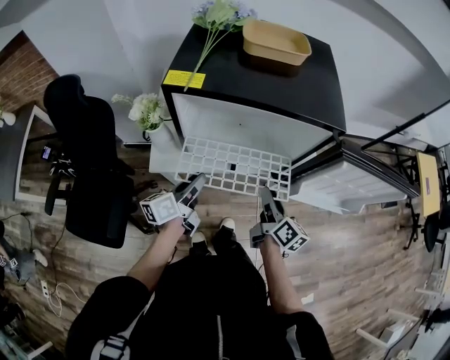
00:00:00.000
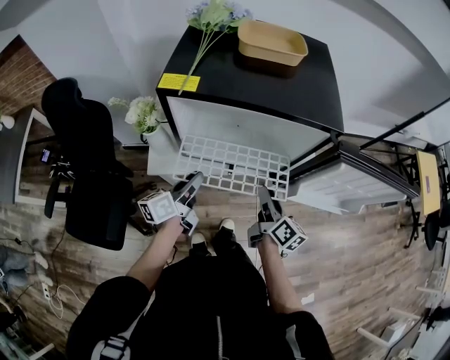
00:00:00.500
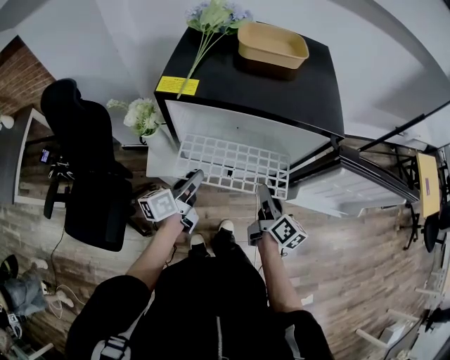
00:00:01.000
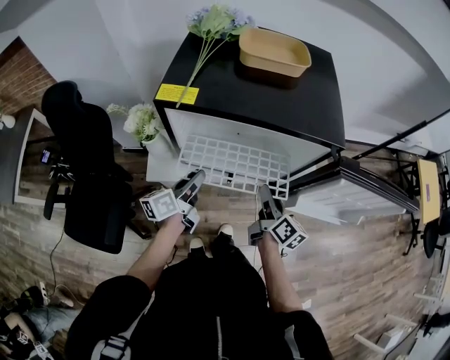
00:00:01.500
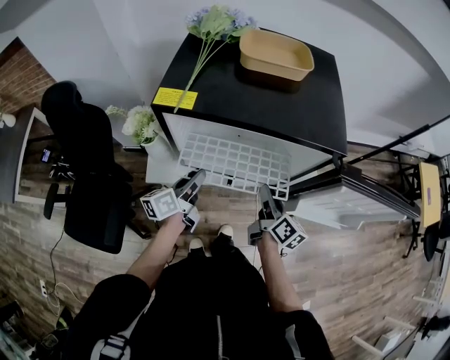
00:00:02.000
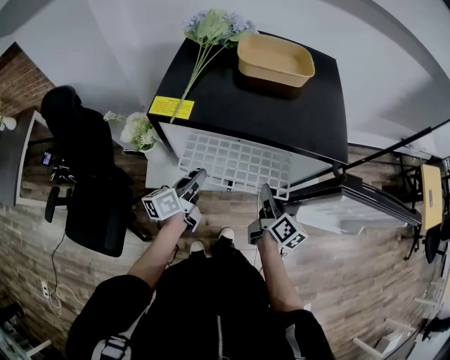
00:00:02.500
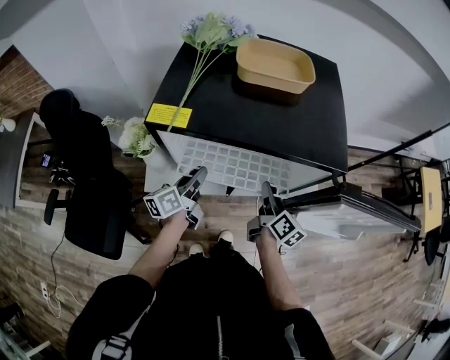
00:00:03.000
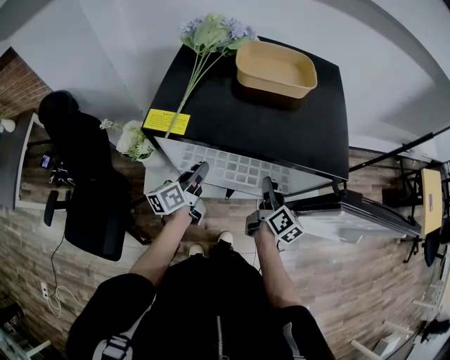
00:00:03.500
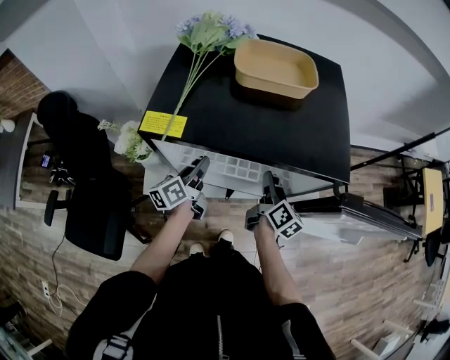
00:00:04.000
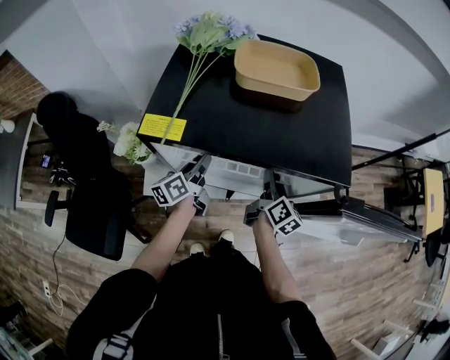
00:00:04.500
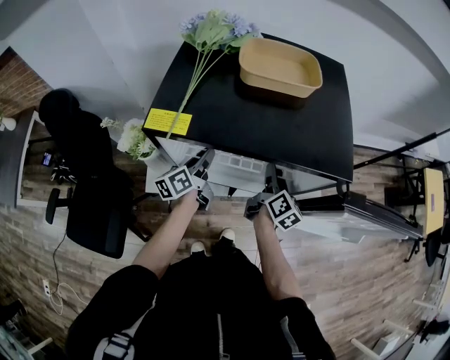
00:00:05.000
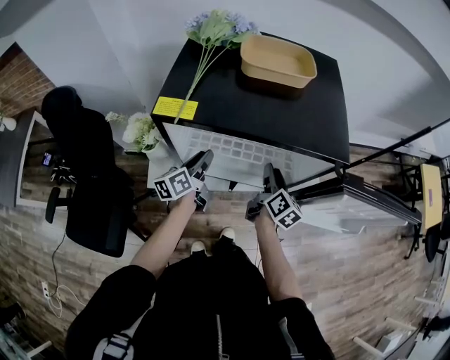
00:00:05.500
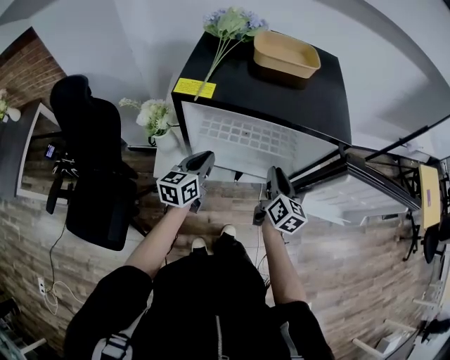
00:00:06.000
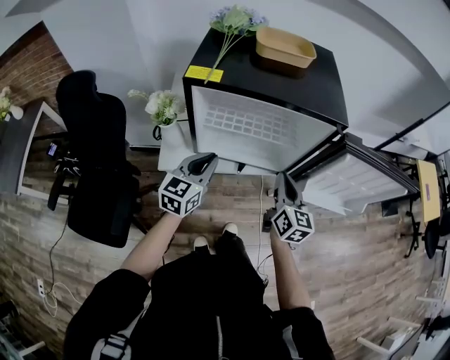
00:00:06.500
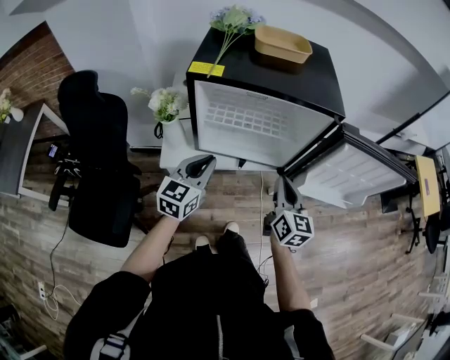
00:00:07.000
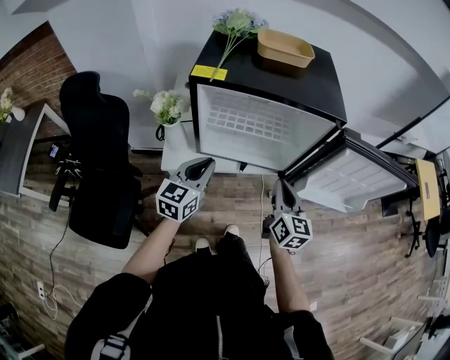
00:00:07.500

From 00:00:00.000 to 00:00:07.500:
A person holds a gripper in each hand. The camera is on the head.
From 00:00:00.000 to 00:00:02.000: Both grippers travel together forward, approximately 5 cm.
From 00:00:02.000 to 00:00:04.000: The two grippers go roughly 10 cm forward.
From 00:00:04.000 to 00:00:05.500: The grippers move only a little.
From 00:00:05.500 to 00:00:07.500: The right gripper shifts approximately 15 cm backward, turns by some 30 degrees, and closes its fingers. The left gripper moves backward and upward, roughly 20 cm, rotates around the line of its fingers by about 40 degrees, clockwise from behind, and closes up.

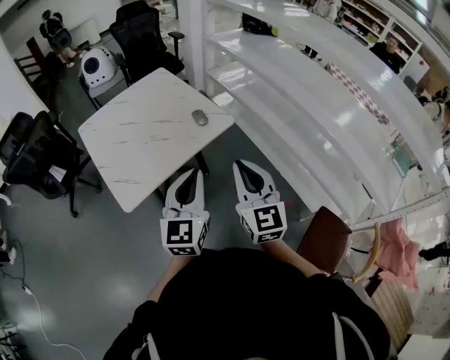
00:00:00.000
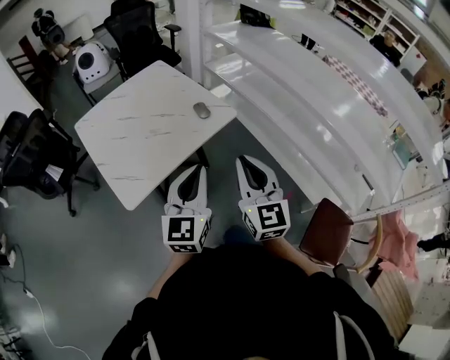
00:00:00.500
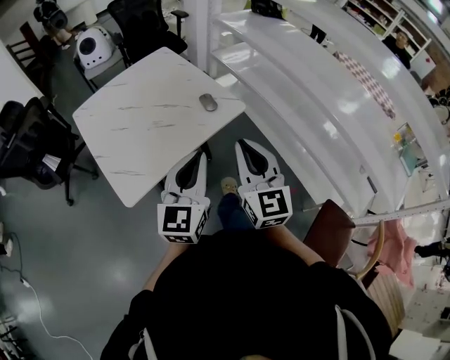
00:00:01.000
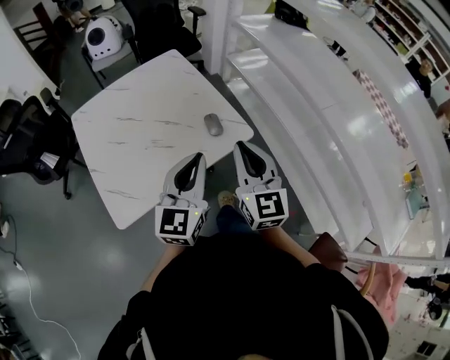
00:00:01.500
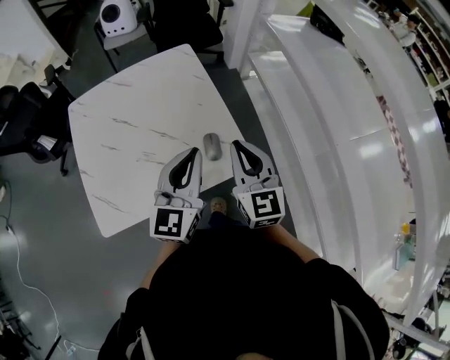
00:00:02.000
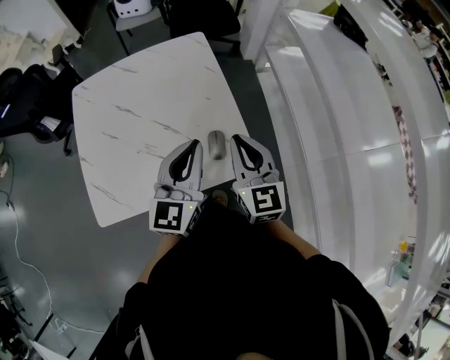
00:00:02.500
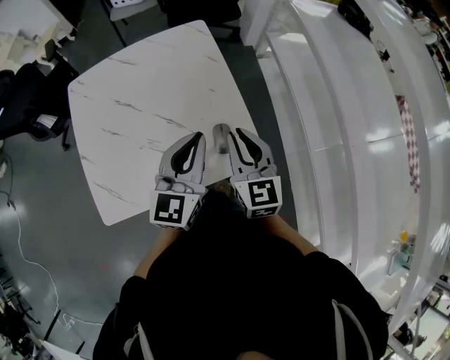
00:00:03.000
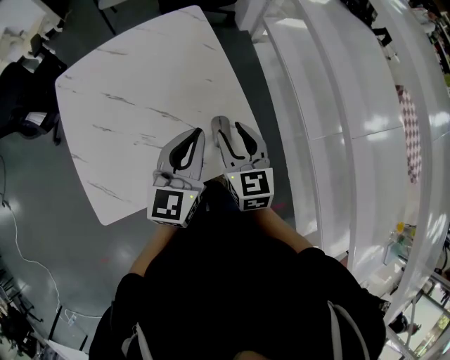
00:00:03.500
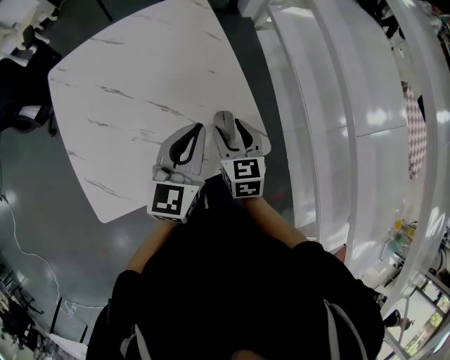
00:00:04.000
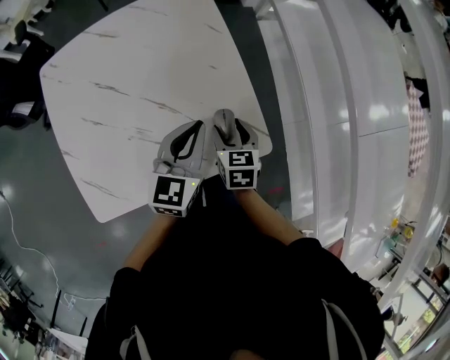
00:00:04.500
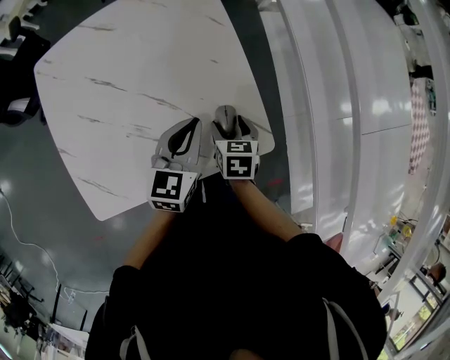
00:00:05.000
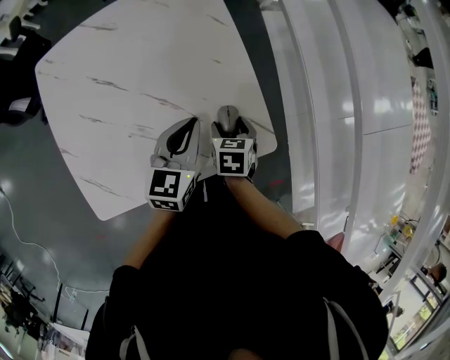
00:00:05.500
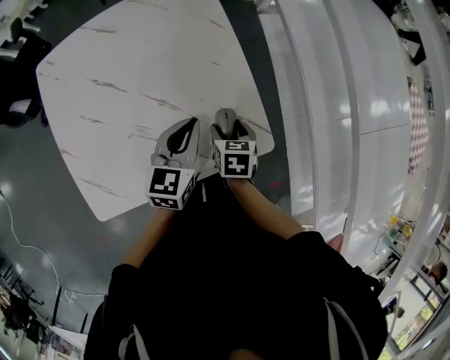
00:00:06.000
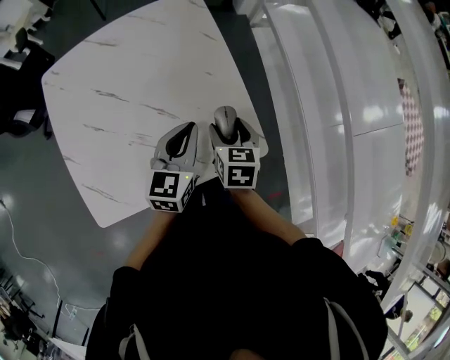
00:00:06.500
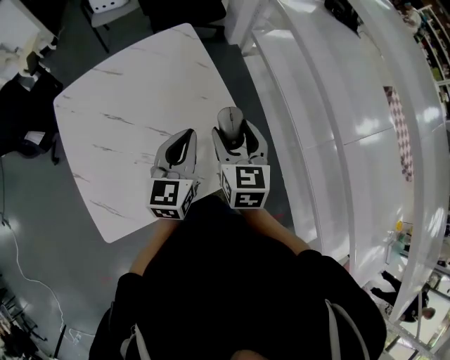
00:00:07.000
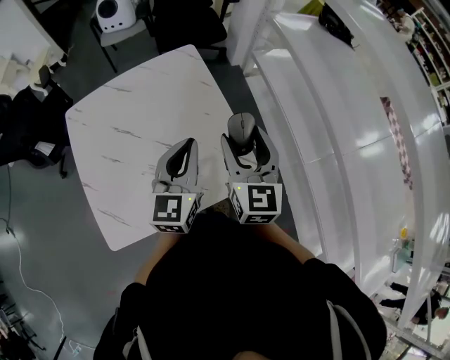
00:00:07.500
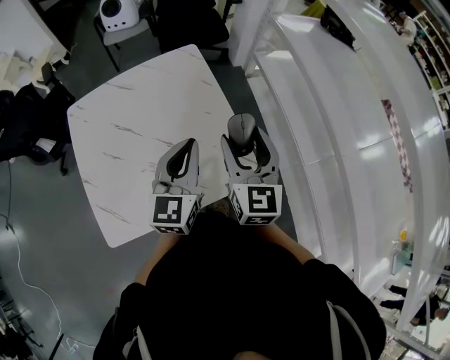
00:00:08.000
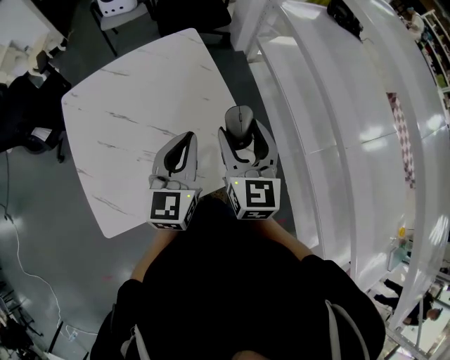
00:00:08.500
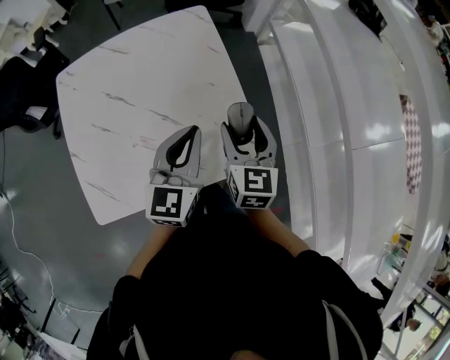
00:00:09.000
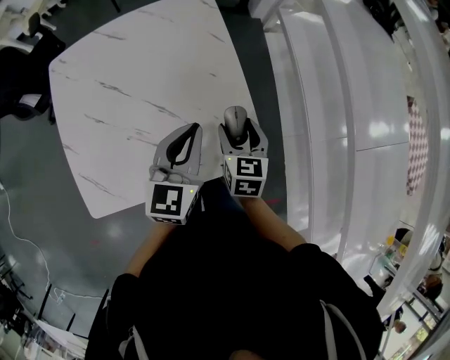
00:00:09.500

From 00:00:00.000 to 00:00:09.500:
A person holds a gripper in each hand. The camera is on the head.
From 00:00:00.000 to 00:00:02.000: The two grippers go some 35 cm forward.
From 00:00:02.000 to 00:00:04.000: The two grippers go roughly 15 cm downward and forward. The right gripper swivels approximately 30 degrees, and opens.
From 00:00:04.000 to 00:00:05.500: Both grippers move downward, approximately 10 cm. The right gripper changes its angle by approximately 30 degrees.
From 00:00:05.500 to 00:00:07.500: The right gripper goes roughly 30 cm upward, and tilts its fingers roughly 50 degrees upward, while the left gripper shifts some 15 cm upward, and turns by some 20 degrees.
From 00:00:07.500 to 00:00:09.500: The right gripper goes roughly 20 cm downward, and rotates about 30 degrees. Meanwhile the left gripper heads downward, covering some 10 cm.

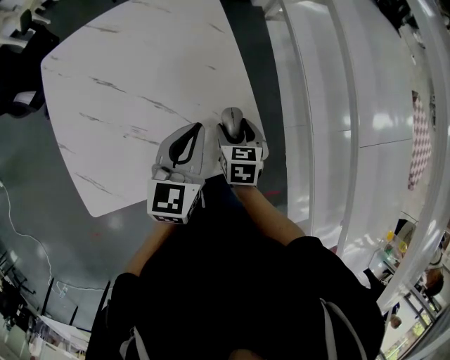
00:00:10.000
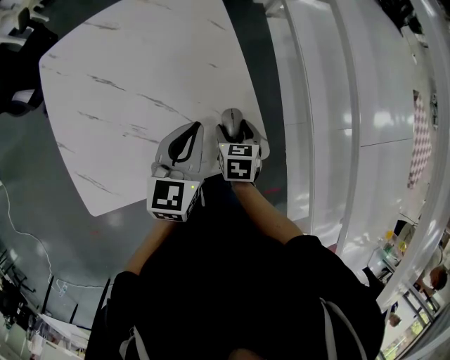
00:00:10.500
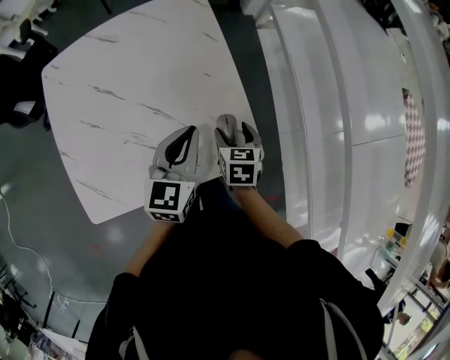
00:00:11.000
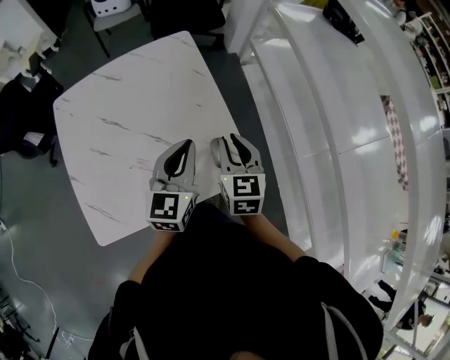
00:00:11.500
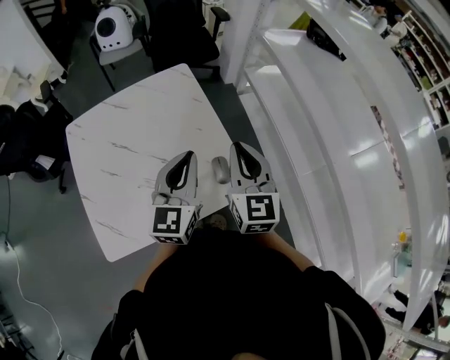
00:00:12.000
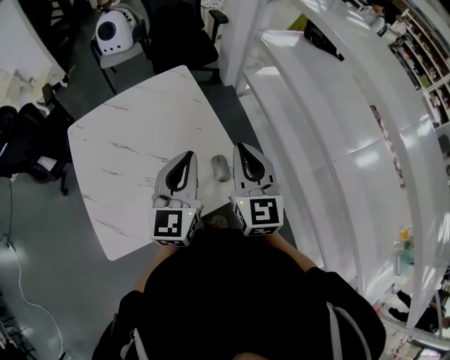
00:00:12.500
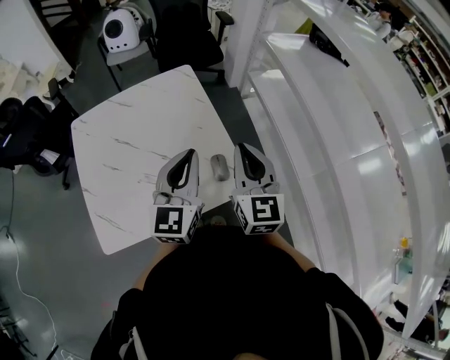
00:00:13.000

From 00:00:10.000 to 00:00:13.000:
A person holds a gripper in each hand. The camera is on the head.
From 00:00:10.000 to 00:00:11.500: The left gripper travels upward by roughly 5 cm. Meanwhile the right gripper travels upward by roughly 20 cm, changes its angle by some 30 degrees, and closes.
From 00:00:11.500 to 00:00:13.000: The two grippers go about 10 cm upward. The right gripper rotates some 20 degrees.

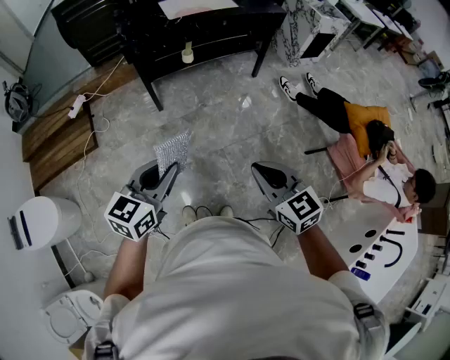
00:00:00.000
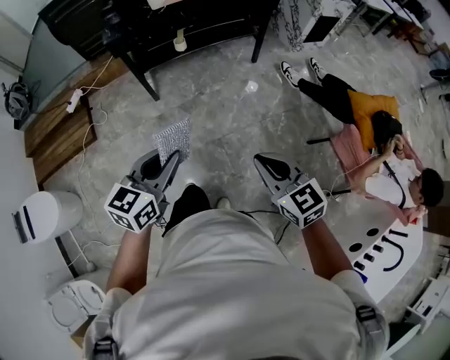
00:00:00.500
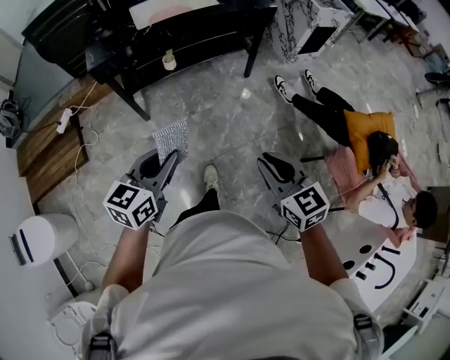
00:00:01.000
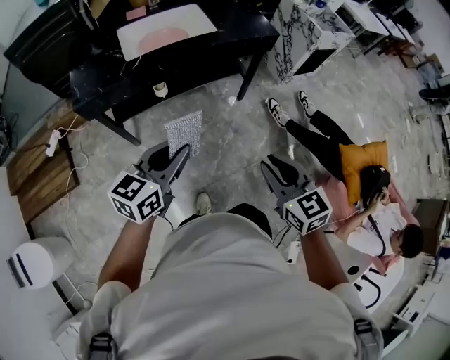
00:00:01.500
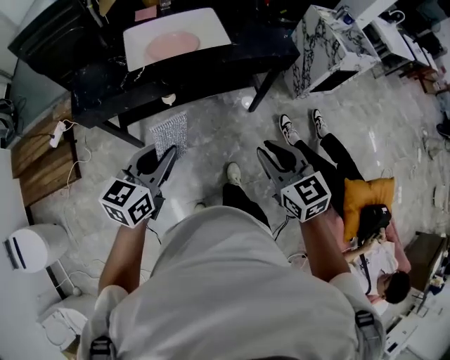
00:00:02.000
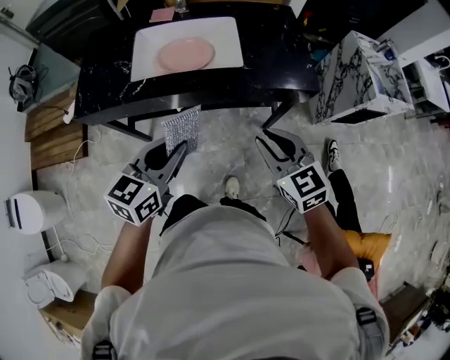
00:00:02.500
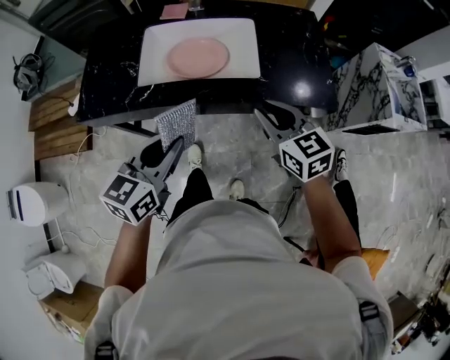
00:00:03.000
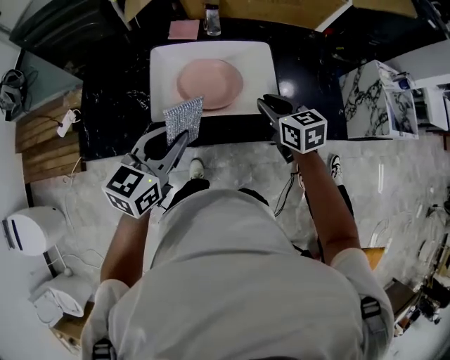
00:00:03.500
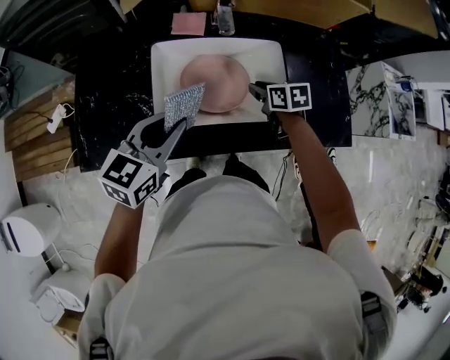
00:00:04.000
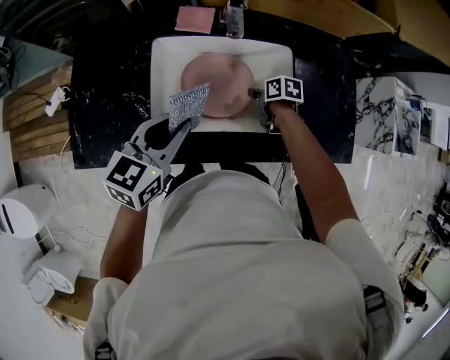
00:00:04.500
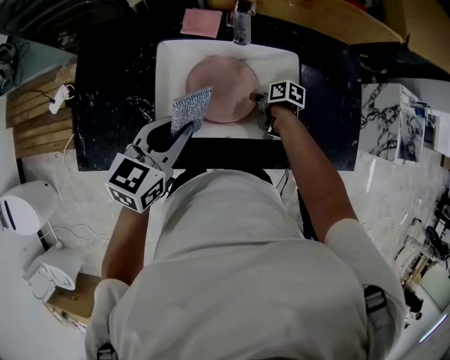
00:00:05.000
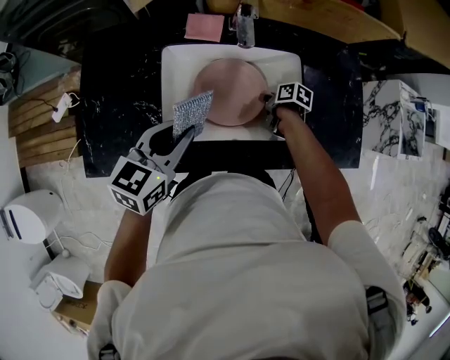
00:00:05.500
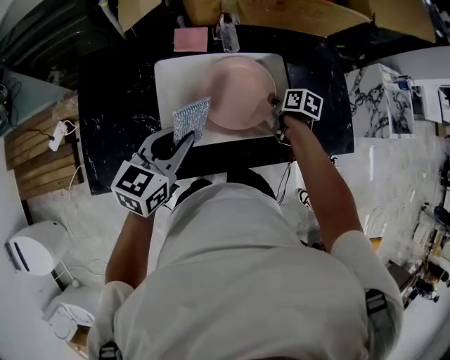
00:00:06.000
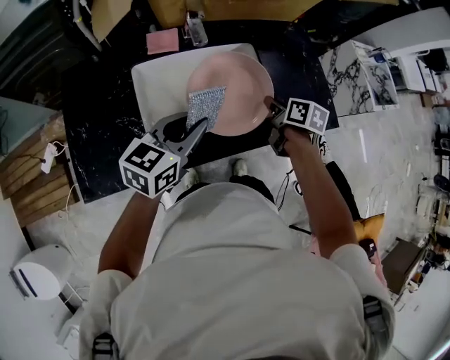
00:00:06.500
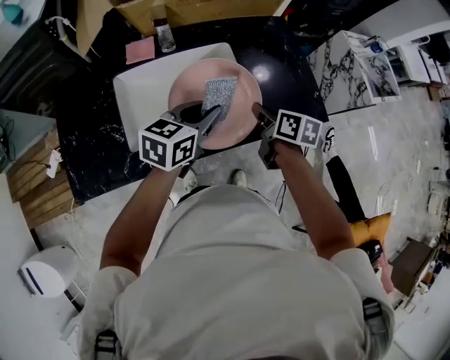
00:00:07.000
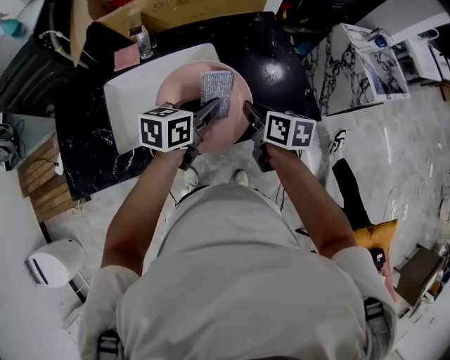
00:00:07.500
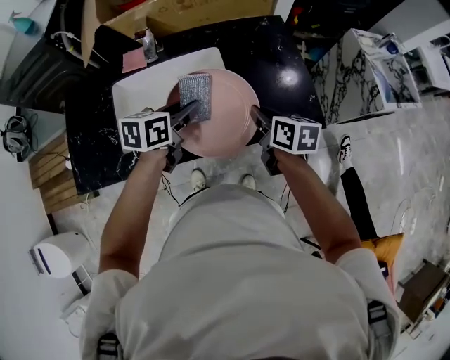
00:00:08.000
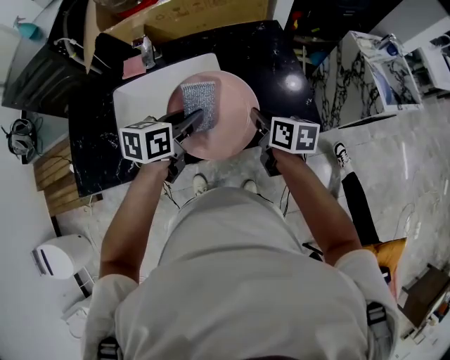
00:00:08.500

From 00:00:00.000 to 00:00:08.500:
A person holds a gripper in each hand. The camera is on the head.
From 00:00:00.000 to 00:00:02.000: Both grippers are carried forward, approximately 60 cm.
From 00:00:02.000 to 00:00:04.000: The two grippers travel together, forward, roughly 50 cm. The right gripper turns by approximately 40 degrees.
From 00:00:04.000 to 00:00:06.500: The left gripper ends up roughly 5 cm from where it was; the right gripper travels downward and back again, roughly 15 cm each way, and rotates some 40 degrees.
From 00:00:06.500 to 00:00:08.500: The grippers both shift to the right by about 15 cm. The left gripper turns by about 20 degrees.
